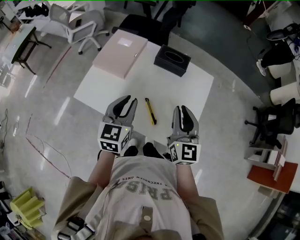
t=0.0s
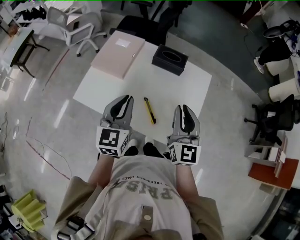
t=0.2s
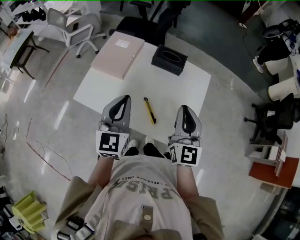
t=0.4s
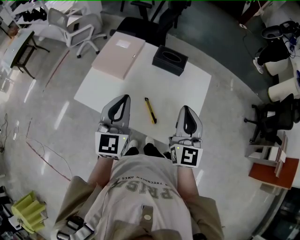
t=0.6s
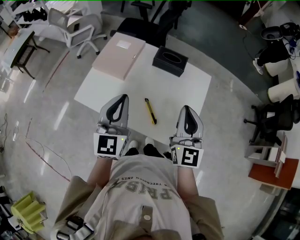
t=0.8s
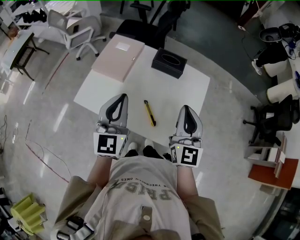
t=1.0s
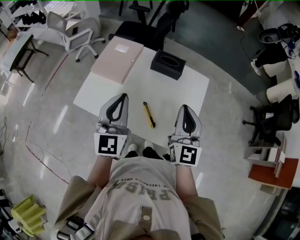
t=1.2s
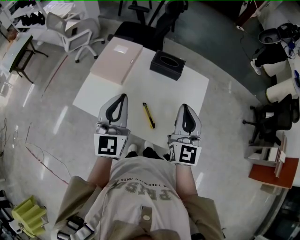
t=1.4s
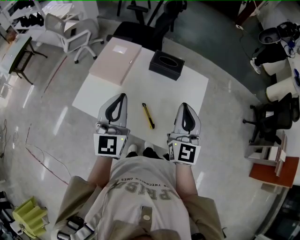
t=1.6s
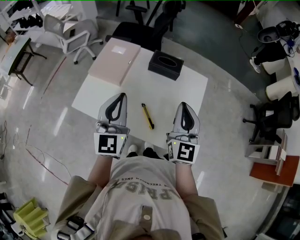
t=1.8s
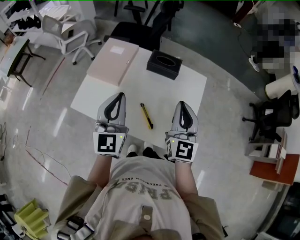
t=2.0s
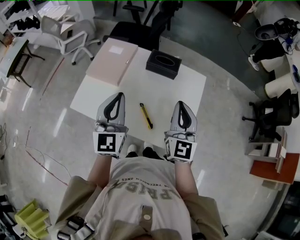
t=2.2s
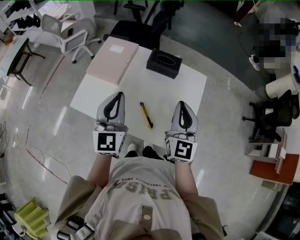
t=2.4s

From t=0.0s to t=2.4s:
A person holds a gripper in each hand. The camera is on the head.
From t=0.0s to t=1.2s: The right gripper travels upward by some 5 cm. The left gripper is displaced upward by roughly 10 cm, and changes its angle by approximately 20 degrees.
From t=1.2s to t=2.4s: The grippers stay close to where they were, moving slightly.

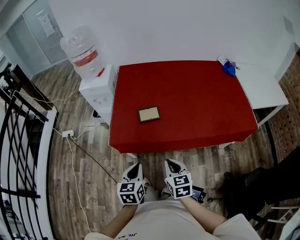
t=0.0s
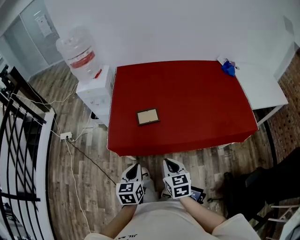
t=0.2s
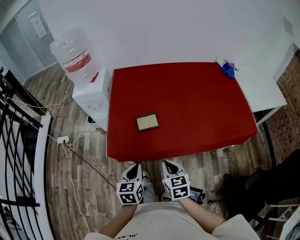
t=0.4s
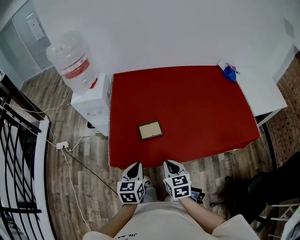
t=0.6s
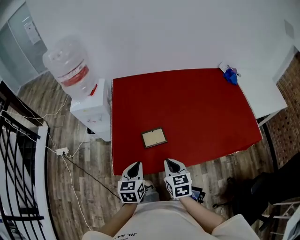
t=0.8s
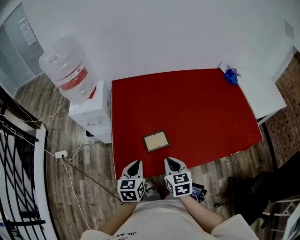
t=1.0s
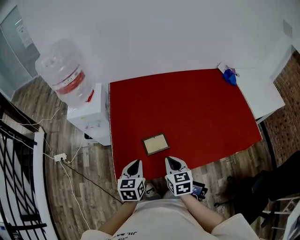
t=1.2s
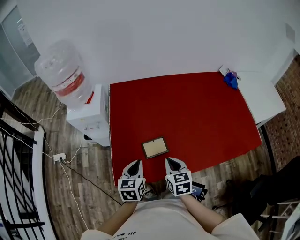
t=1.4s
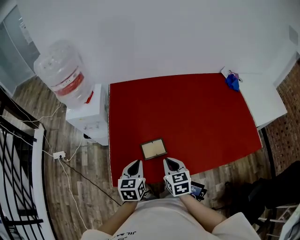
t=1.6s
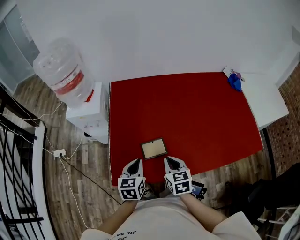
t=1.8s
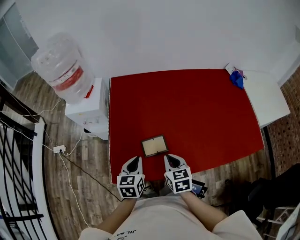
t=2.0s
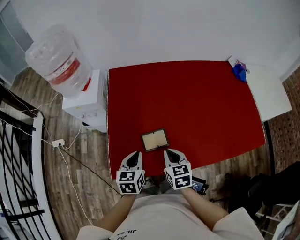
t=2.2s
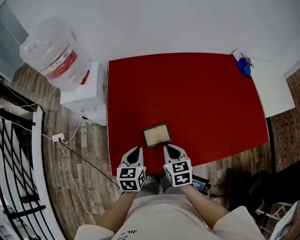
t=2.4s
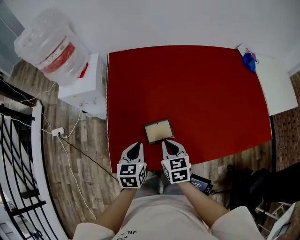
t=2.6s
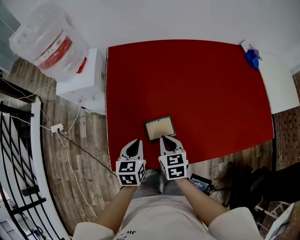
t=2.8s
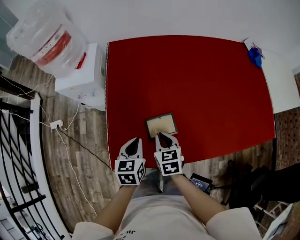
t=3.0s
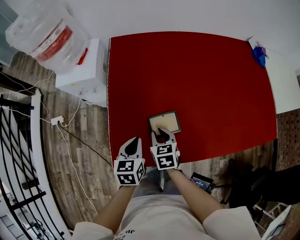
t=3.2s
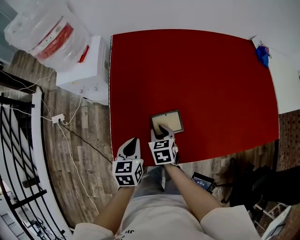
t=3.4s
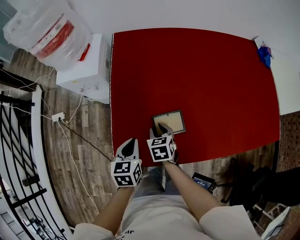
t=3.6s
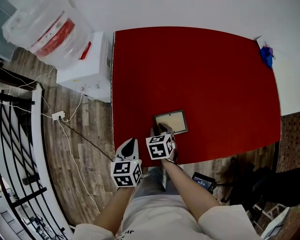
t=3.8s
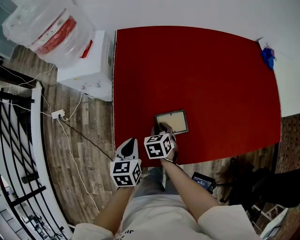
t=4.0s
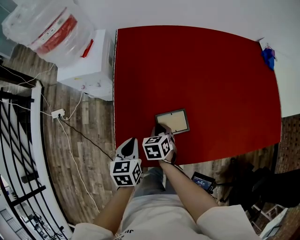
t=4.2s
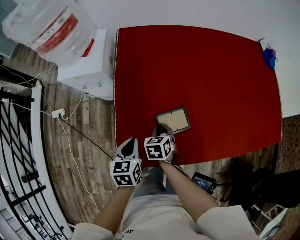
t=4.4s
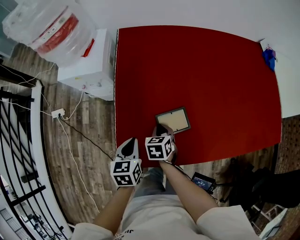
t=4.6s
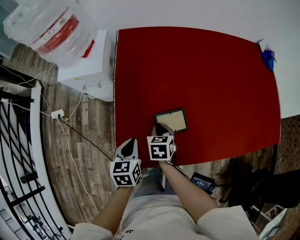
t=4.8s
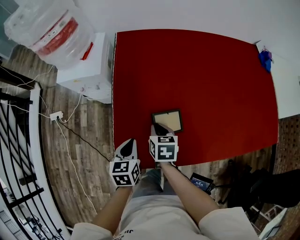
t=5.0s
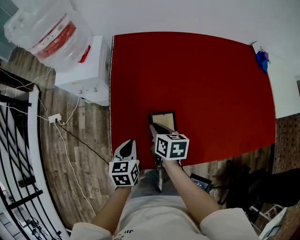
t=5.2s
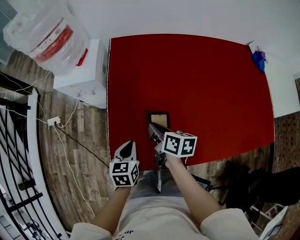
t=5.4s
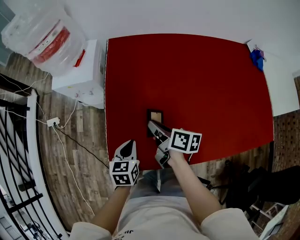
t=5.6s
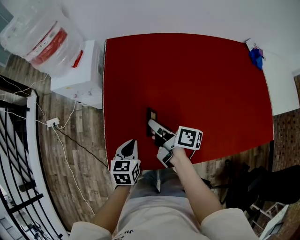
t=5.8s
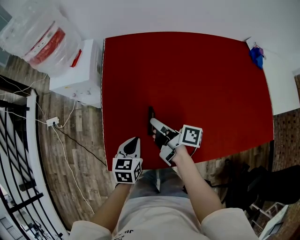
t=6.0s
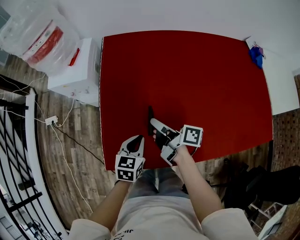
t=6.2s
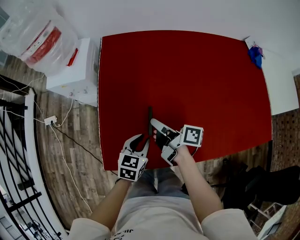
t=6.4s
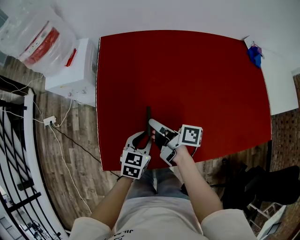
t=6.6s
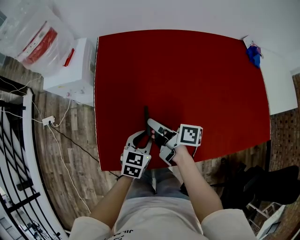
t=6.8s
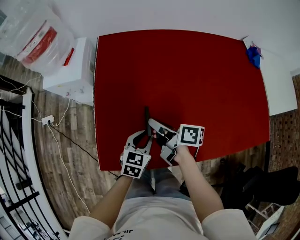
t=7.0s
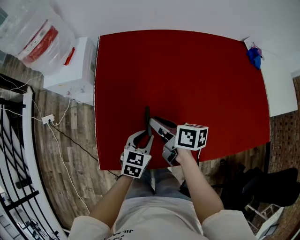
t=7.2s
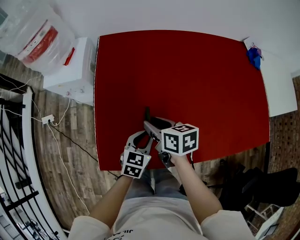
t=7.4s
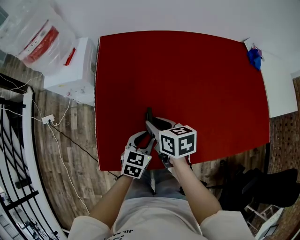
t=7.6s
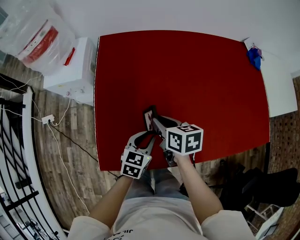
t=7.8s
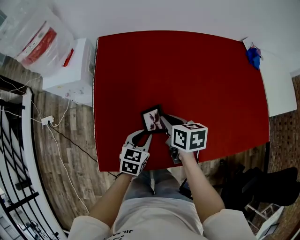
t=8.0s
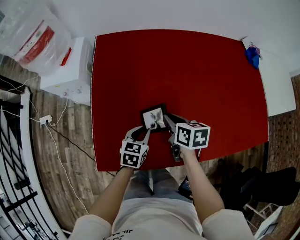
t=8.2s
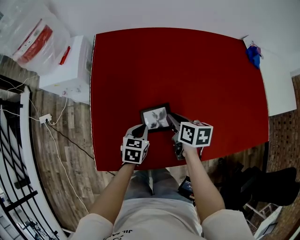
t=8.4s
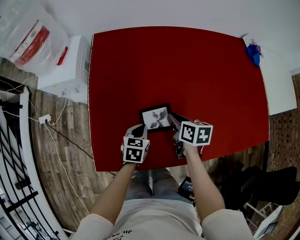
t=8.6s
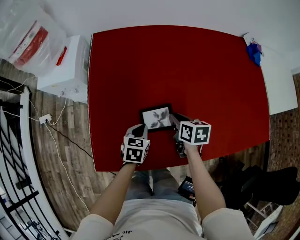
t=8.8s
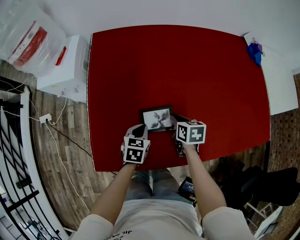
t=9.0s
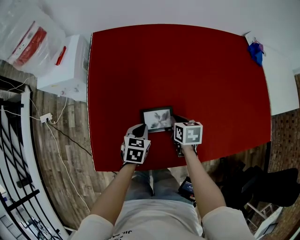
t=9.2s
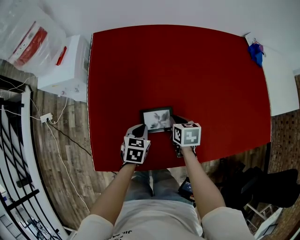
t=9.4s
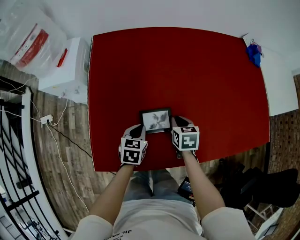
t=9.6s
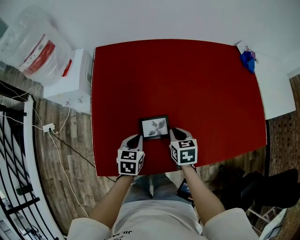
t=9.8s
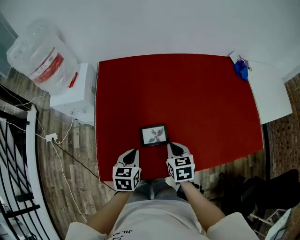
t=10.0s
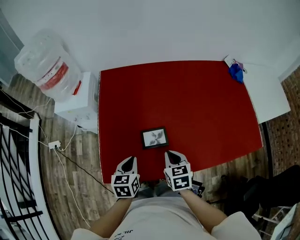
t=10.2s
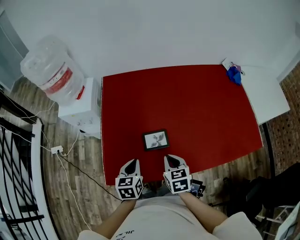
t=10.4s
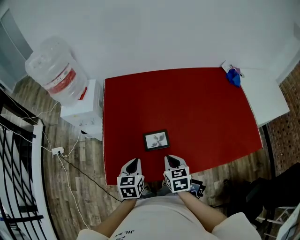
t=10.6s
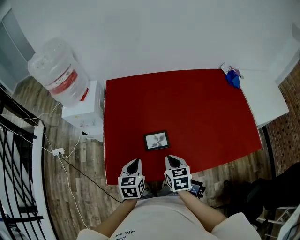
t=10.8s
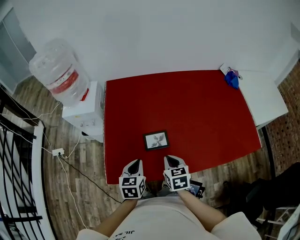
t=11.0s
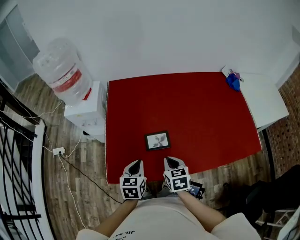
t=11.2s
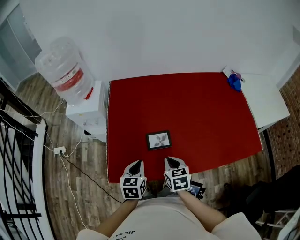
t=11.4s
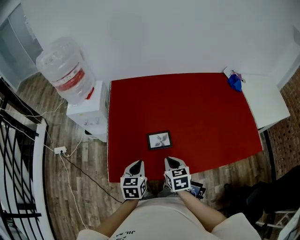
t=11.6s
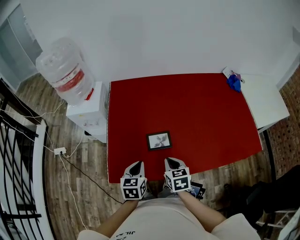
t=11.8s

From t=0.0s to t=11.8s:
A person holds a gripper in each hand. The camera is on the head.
From t=0.0s to t=1.4s: The grippers both shift forward by roughly 25 cm.
From t=1.4s to t=3.0s: The right gripper travels downward, forward and to the left by approximately 15 cm; the left gripper moves downward and forward, approximately 10 cm.
From t=3.0s to t=4.4s: The left gripper is displaced to the left by some 10 cm. The right gripper goes roughly 10 cm downward and to the left.
From t=4.4s to t=6.0s: The right gripper shifts about 15 cm upward and to the right, and points its fingers approximately 50 degrees further upward. The left gripper travels to the right by some 10 cm.
From t=6.0s to t=7.4s: The left gripper shifts approximately 10 cm to the right. The right gripper swivels about 40 degrees.
From t=7.4s to t=8.8s: The right gripper is displaced to the right and downward by about 15 cm, while the left gripper travels downward by about 5 cm.
From t=8.8s to t=10.4s: The left gripper travels upward and backward by approximately 20 cm, while the right gripper is displaced backward and upward by approximately 20 cm, and changes its angle by approximately 20 degrees.
From t=10.4s to t=11.8s: The grippers move only a little.

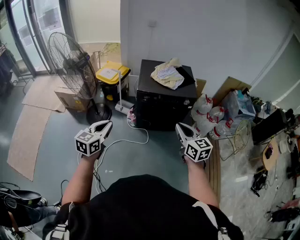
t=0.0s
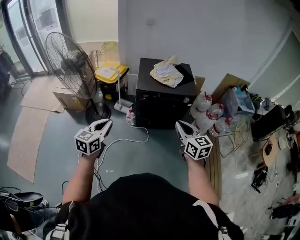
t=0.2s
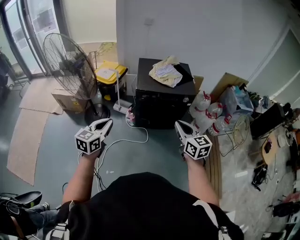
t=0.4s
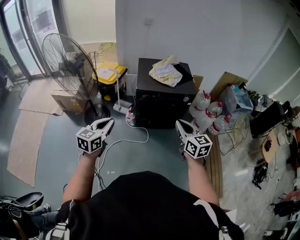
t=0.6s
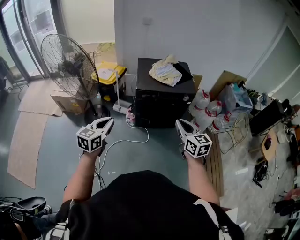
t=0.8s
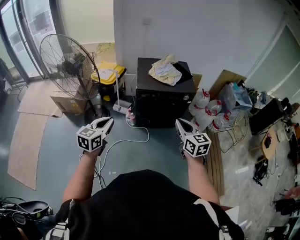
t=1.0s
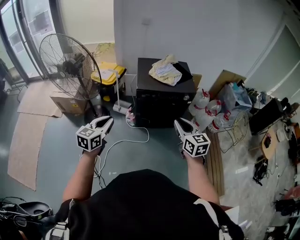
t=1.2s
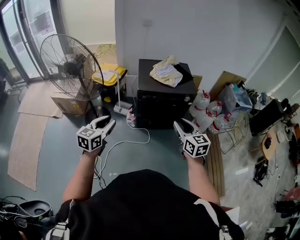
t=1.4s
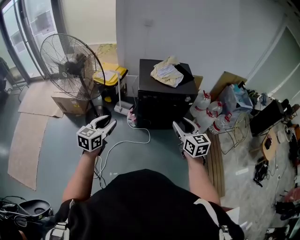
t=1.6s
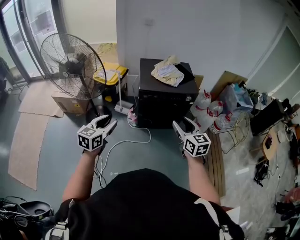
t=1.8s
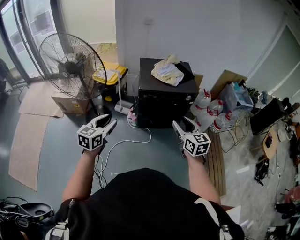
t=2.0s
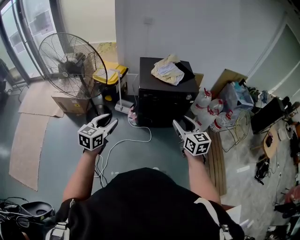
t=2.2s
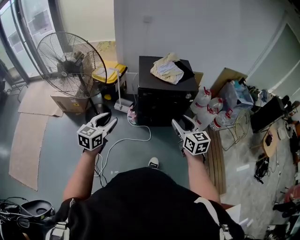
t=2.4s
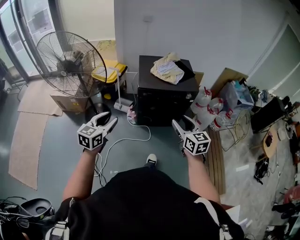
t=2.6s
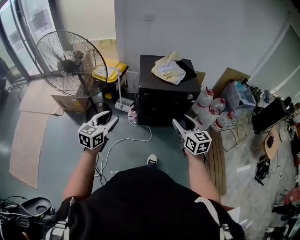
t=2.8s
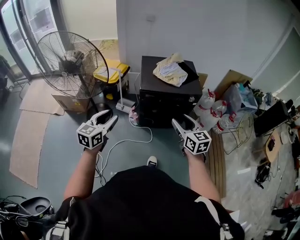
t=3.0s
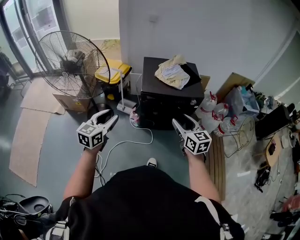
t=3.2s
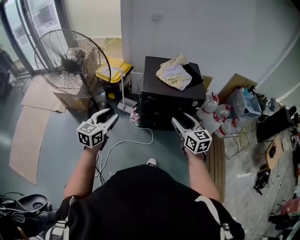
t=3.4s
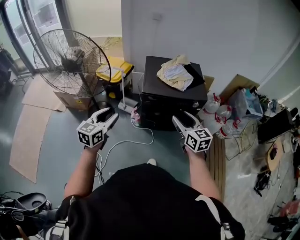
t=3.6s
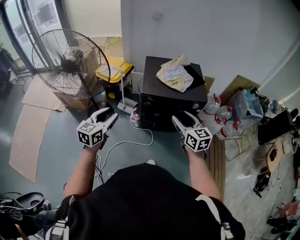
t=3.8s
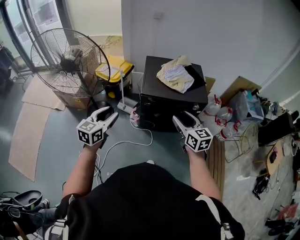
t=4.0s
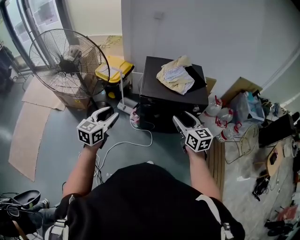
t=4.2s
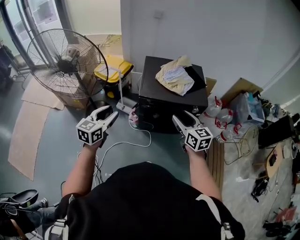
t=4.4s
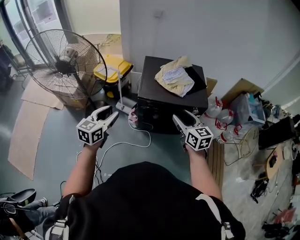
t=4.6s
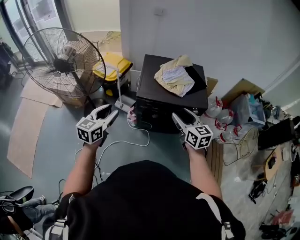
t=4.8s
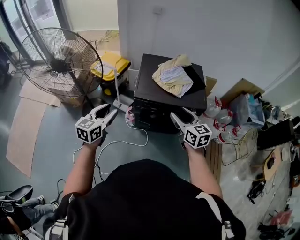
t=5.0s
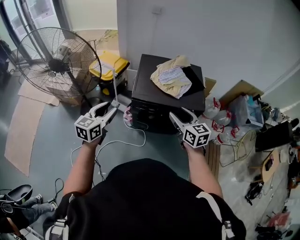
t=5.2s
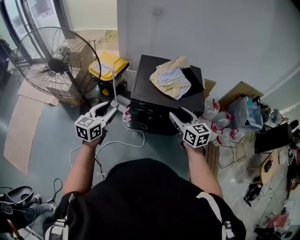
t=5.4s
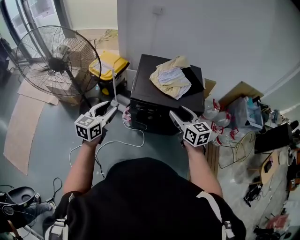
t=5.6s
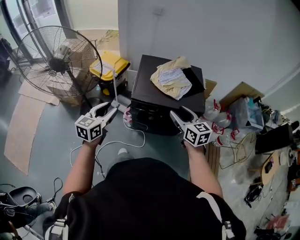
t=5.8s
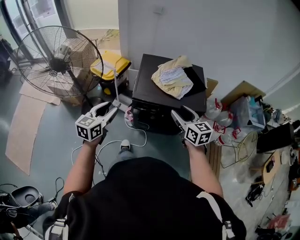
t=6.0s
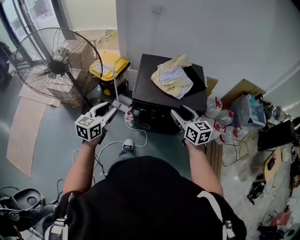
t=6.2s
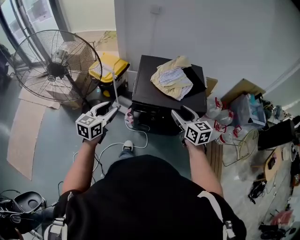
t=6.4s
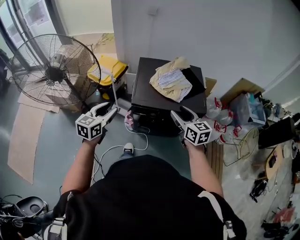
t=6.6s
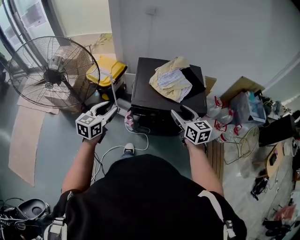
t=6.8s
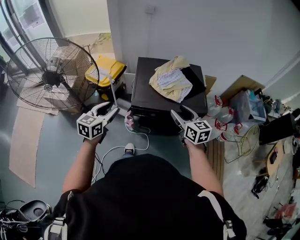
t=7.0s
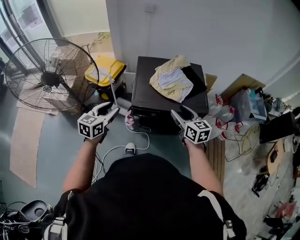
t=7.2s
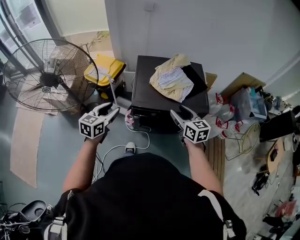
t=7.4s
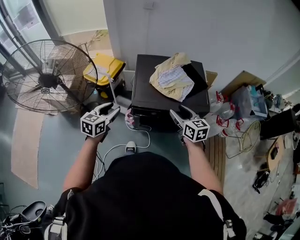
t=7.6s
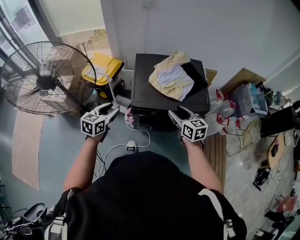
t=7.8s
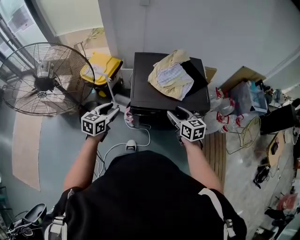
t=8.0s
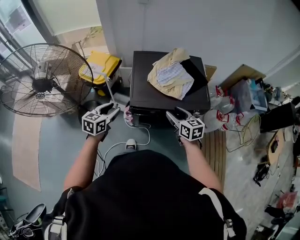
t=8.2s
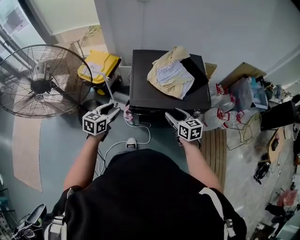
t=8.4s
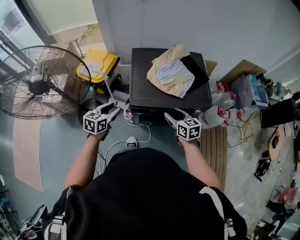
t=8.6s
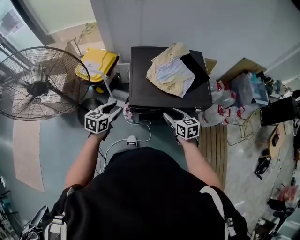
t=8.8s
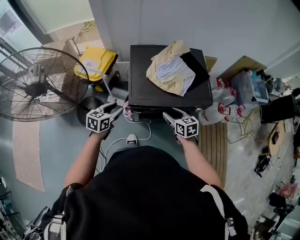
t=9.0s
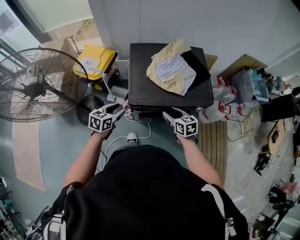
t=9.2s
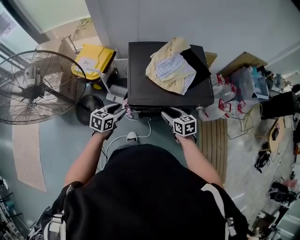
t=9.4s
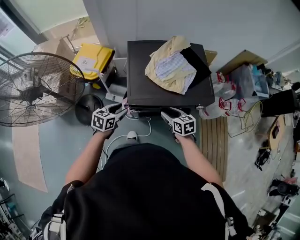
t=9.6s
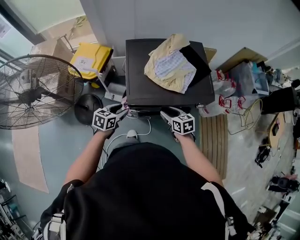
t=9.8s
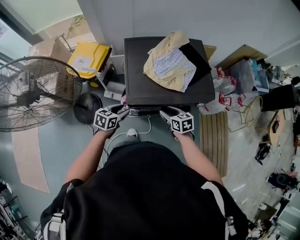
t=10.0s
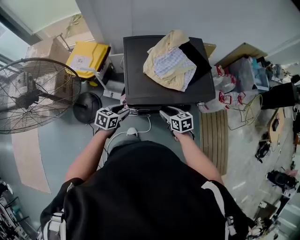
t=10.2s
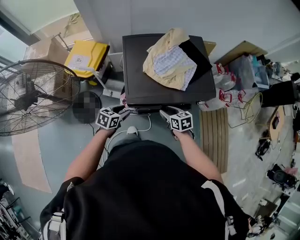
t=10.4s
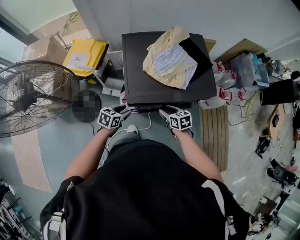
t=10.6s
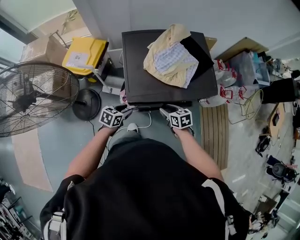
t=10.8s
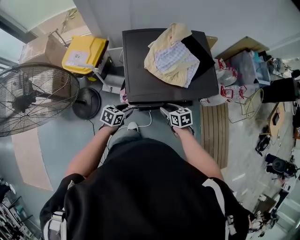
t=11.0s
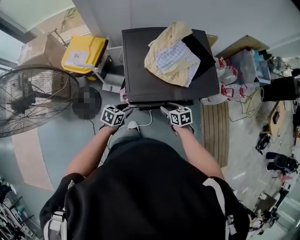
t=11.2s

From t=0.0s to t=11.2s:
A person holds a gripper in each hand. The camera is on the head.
From t=0.0s to t=1.6s: Both grippers move to the left, about 5 cm. The right gripper opens its fingers. The left gripper opens its fingers.
From t=1.6s to t=3.2s: Both grippers travel together forward, some 10 cm.
From t=3.2s to t=4.8s: The grippers both shift forward by roughly 15 cm.
From t=4.8s to t=6.4s: The grippers both shift forward by roughly 5 cm.
From t=6.4s to t=8.0s: The left gripper heads forward and downward, covering approximately 15 cm; the right gripper shifts some 10 cm downward and forward.
From t=8.0s to t=9.6s: The right gripper goes about 15 cm downward, while the left gripper is displaced downward and forward by approximately 15 cm.
From t=9.6s to t=11.2s: The two grippers go about 10 cm downward.
